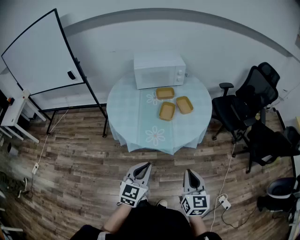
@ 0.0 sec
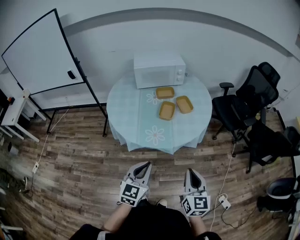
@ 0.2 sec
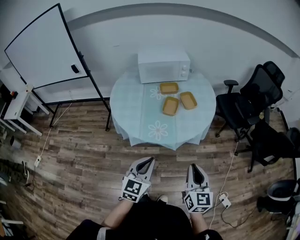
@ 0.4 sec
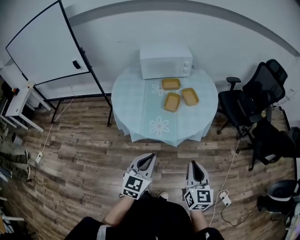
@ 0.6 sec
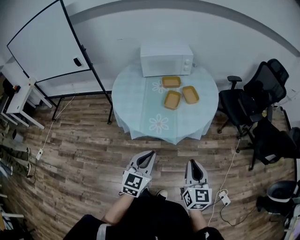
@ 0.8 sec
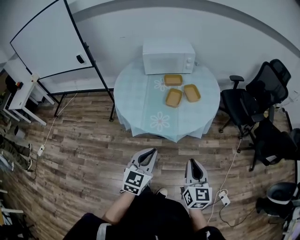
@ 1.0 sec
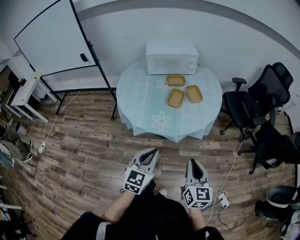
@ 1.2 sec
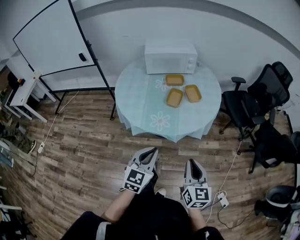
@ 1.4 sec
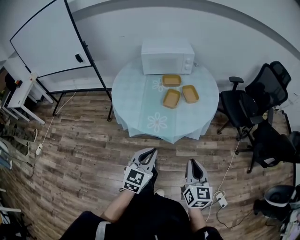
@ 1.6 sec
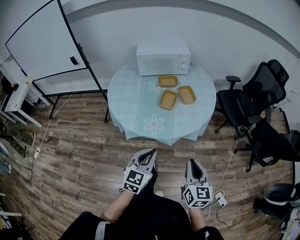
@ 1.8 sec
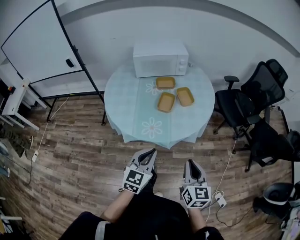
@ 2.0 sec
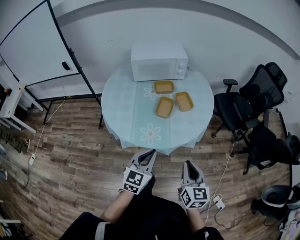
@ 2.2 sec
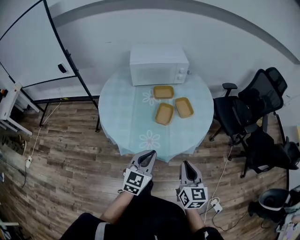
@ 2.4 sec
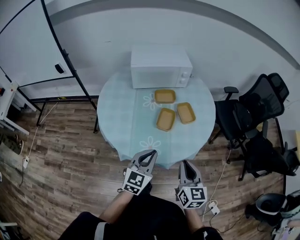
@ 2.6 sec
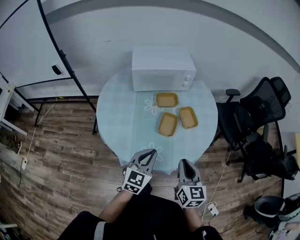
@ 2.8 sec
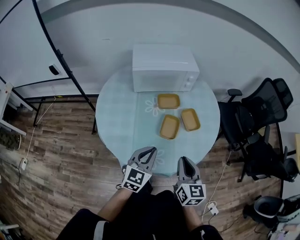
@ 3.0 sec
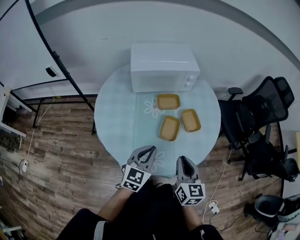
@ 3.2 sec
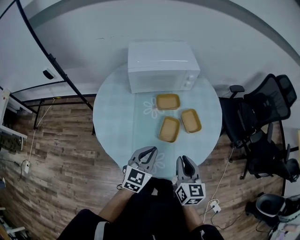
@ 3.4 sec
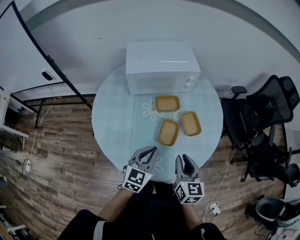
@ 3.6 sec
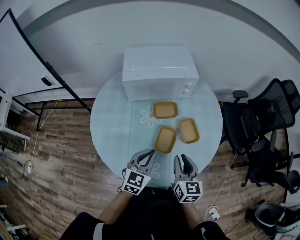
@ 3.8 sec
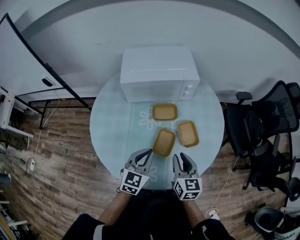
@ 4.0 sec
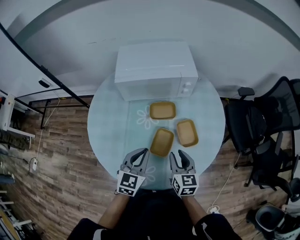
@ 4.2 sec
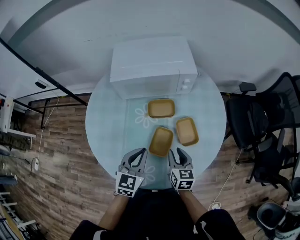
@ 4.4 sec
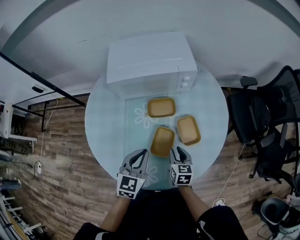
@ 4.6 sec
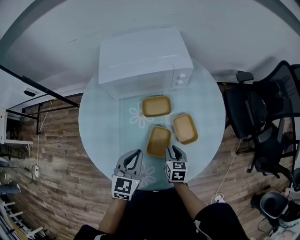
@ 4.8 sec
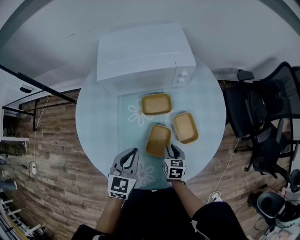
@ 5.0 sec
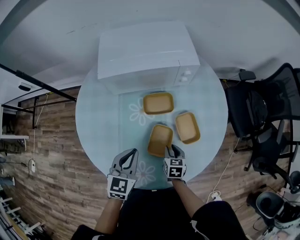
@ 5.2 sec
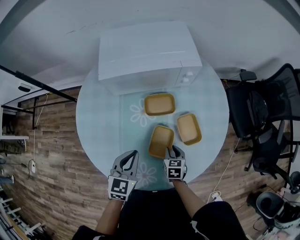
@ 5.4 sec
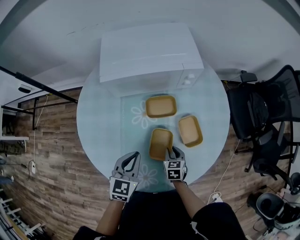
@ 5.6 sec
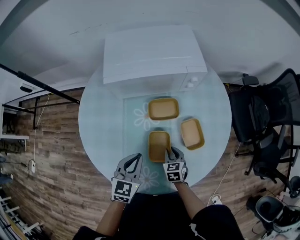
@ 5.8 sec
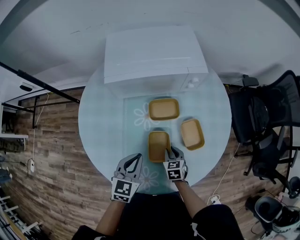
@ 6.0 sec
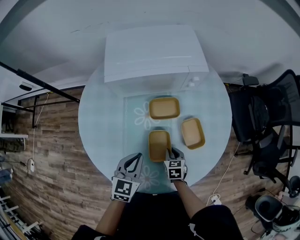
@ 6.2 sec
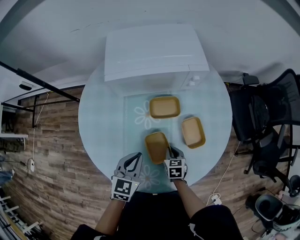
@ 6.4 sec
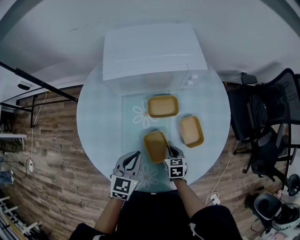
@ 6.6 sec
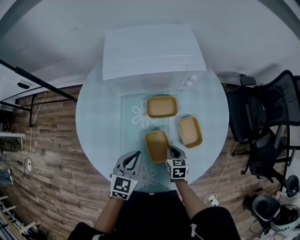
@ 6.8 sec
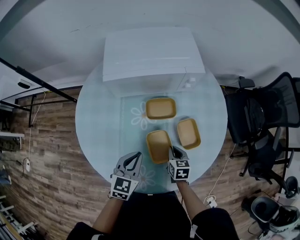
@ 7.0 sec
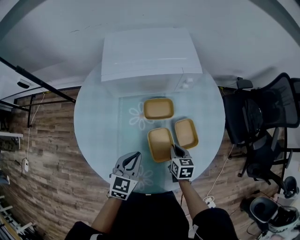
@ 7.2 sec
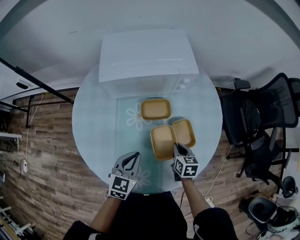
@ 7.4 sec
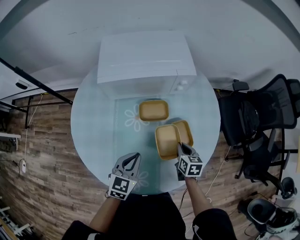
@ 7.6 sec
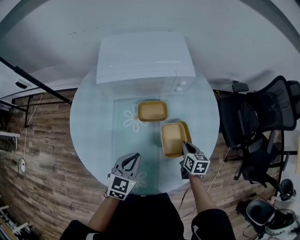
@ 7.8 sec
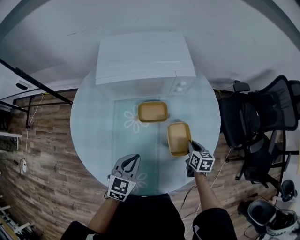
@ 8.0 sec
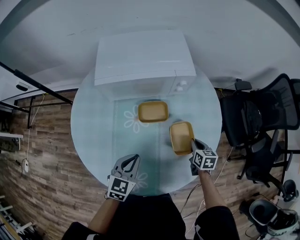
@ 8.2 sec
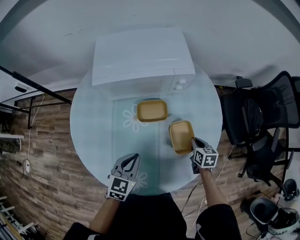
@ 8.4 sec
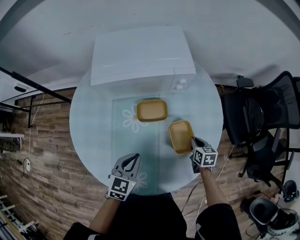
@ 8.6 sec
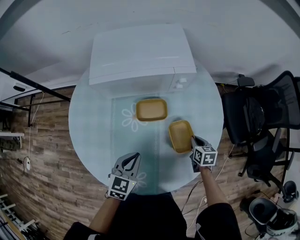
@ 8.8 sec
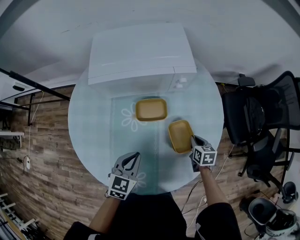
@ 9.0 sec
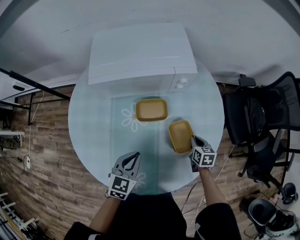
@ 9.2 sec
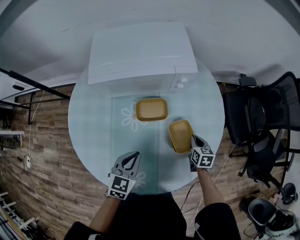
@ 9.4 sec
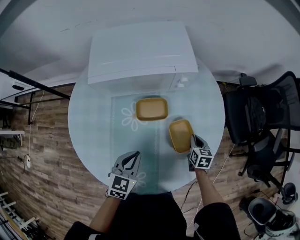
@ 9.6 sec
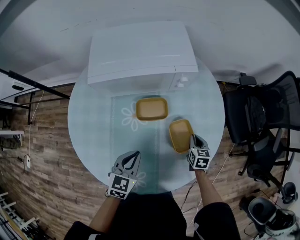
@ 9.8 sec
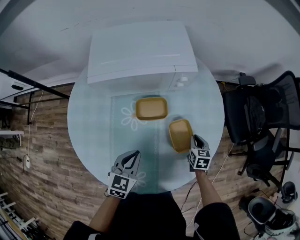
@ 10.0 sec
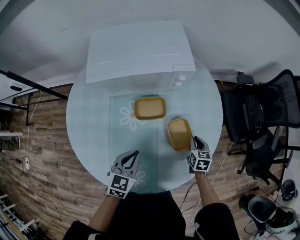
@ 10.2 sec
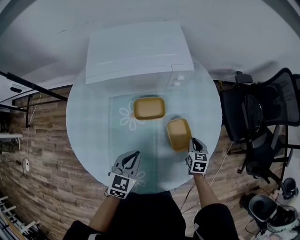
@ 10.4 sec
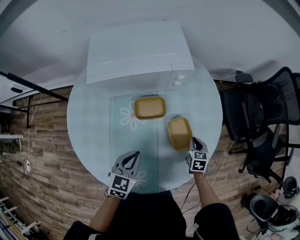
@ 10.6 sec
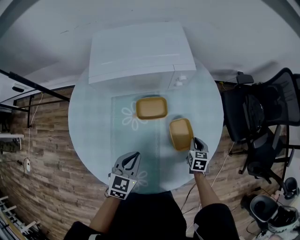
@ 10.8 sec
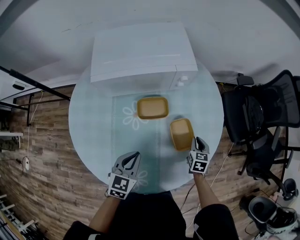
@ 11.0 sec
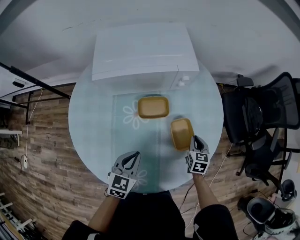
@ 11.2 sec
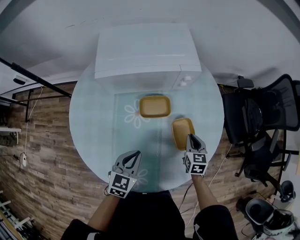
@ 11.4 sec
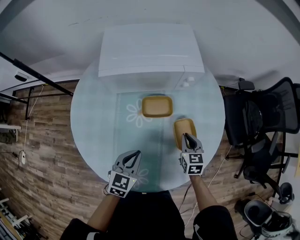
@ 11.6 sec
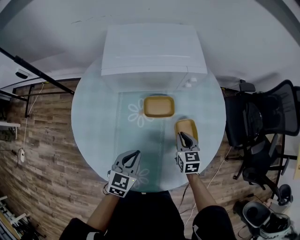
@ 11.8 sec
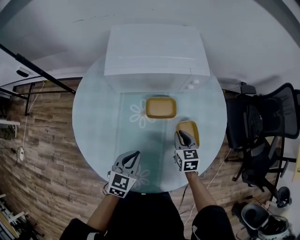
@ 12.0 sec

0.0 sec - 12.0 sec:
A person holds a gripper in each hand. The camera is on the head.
0.0 sec - 1.6 sec: The grippers make only small movements.
1.6 sec - 3.0 sec: The right gripper is displaced forward and to the left by some 30 cm, while the left gripper goes some 30 cm forward.
3.0 sec - 4.4 sec: The right gripper travels forward and downward by some 25 cm, and opens up. Meanwhile the left gripper goes roughly 15 cm forward.
4.4 sec - 6.0 sec: The right gripper shifts about 15 cm downward, and swivels some 30 degrees, while the left gripper shifts approximately 10 cm downward and to the left.
6.0 sec - 7.6 sec: The right gripper heads to the right and upward, covering some 15 cm.
7.6 sec - 9.0 sec: The right gripper travels to the right, downward and forward by about 10 cm.
9.0 sec - 10.4 sec: The grippers stay close to where they were, moving slightly.
10.4 sec - 12.0 sec: The right gripper travels to the left and upward by some 15 cm.

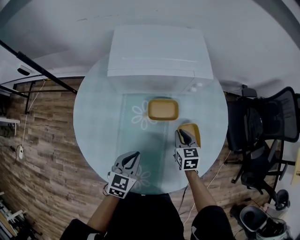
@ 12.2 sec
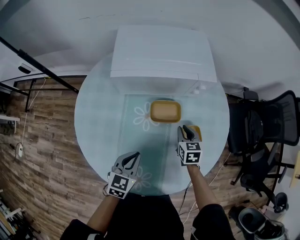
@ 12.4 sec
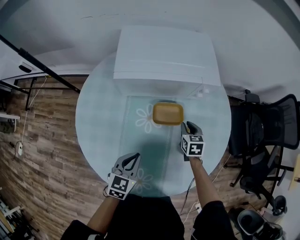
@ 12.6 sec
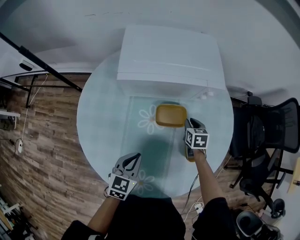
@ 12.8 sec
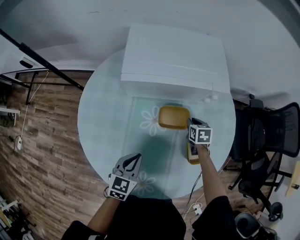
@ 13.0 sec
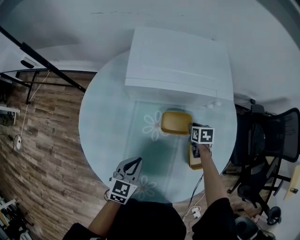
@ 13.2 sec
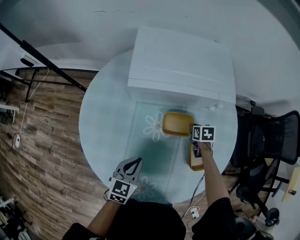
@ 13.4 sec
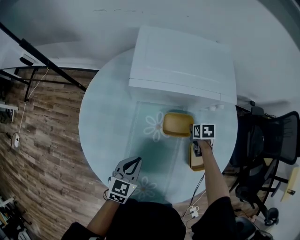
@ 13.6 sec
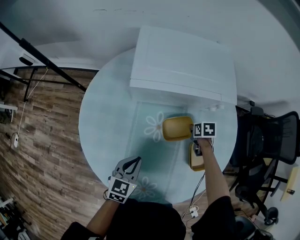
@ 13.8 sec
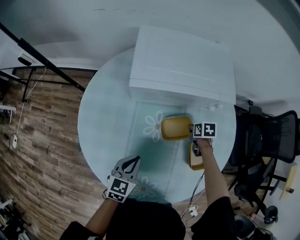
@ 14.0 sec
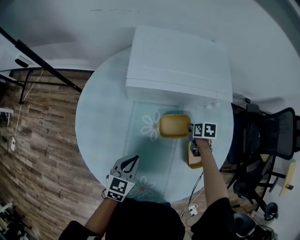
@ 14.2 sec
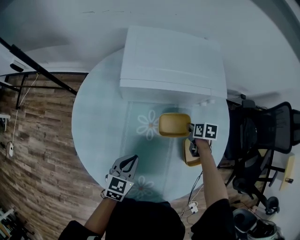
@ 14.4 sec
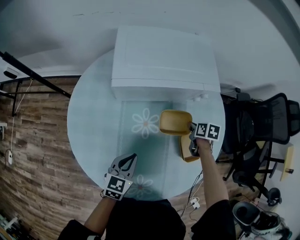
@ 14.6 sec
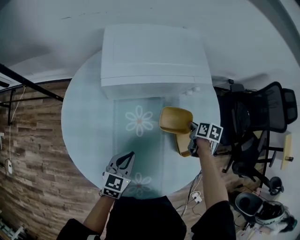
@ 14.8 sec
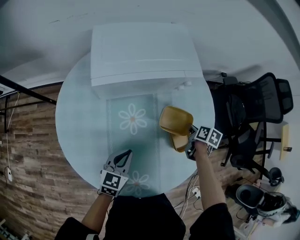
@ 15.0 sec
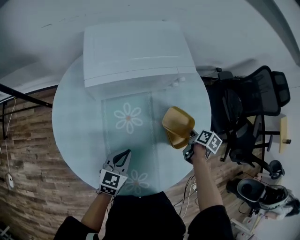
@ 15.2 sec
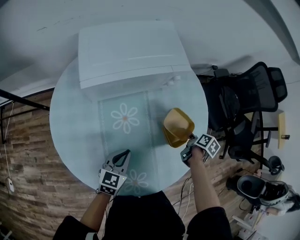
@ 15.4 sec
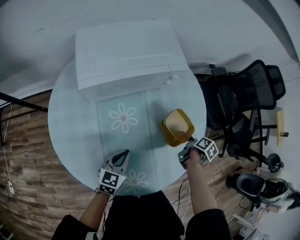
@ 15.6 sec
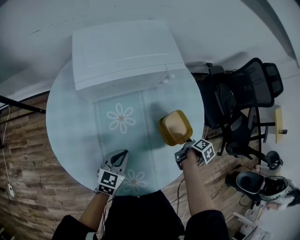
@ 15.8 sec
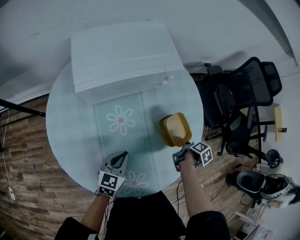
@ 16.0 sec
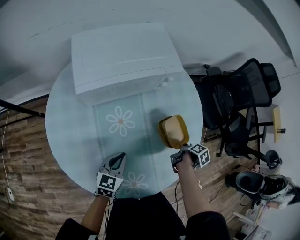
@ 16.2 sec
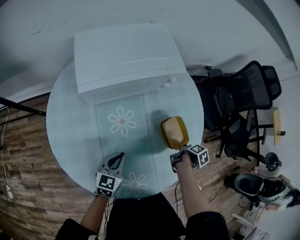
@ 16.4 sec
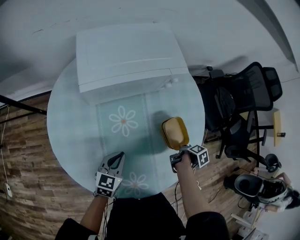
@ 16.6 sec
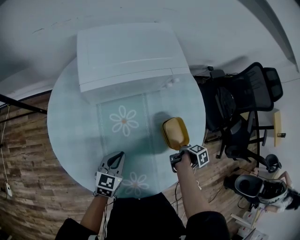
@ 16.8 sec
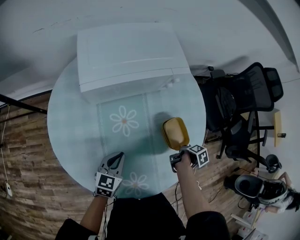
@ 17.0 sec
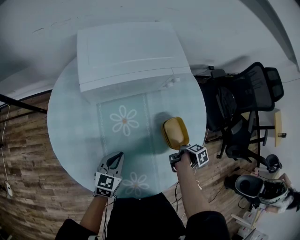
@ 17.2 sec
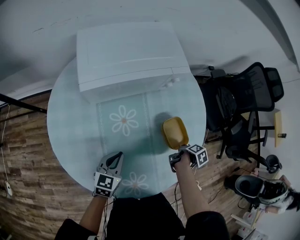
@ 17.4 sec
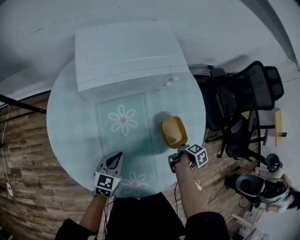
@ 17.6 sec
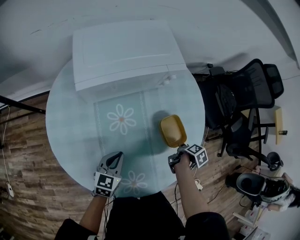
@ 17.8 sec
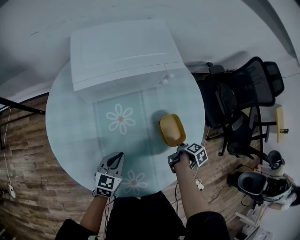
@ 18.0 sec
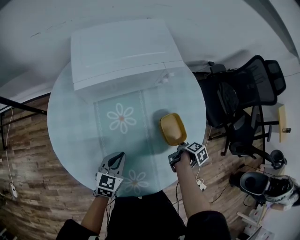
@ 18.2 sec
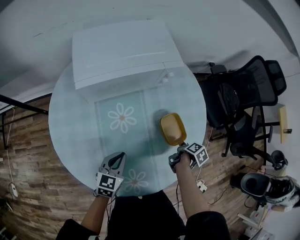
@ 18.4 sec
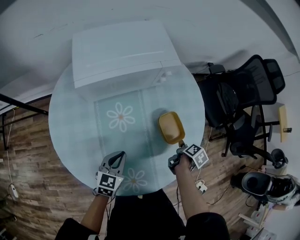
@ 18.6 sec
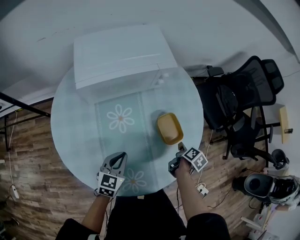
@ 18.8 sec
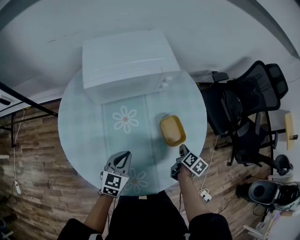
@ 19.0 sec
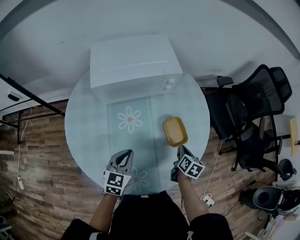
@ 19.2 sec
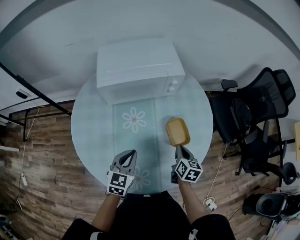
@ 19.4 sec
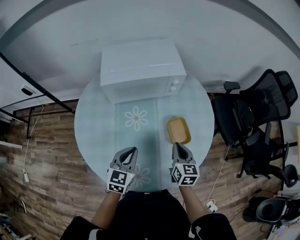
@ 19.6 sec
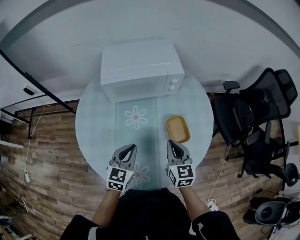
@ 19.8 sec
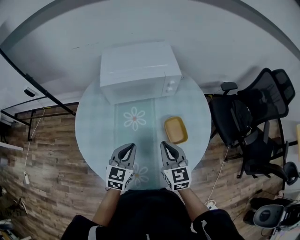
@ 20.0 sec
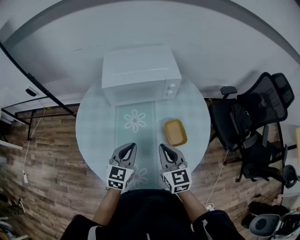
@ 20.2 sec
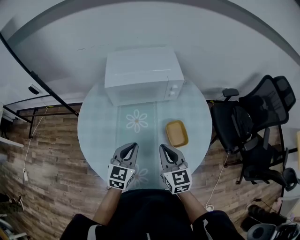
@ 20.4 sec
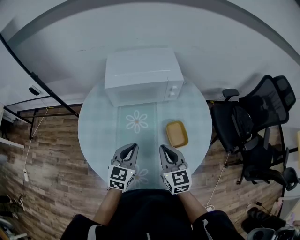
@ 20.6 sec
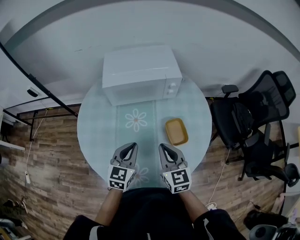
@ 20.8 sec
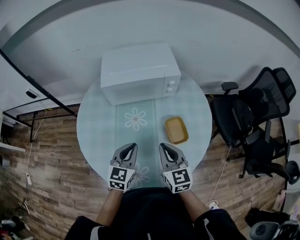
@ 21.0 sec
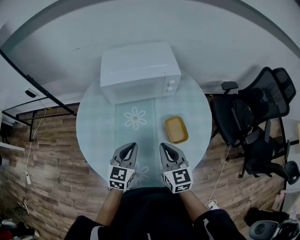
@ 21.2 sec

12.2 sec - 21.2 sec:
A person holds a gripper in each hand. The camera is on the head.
12.2 sec - 13.8 sec: The right gripper is displaced forward and downward by roughly 15 cm, and angles its fingers downward, by roughly 30 degrees. Meanwhile the left gripper heads to the left, covering about 5 cm.
13.8 sec - 15.2 sec: The right gripper ends up roughly 20 cm from where it was, and twists roughly 50 degrees clockwise, seen from behind.
15.2 sec - 16.6 sec: The right gripper moves backward and to the right, roughly 10 cm, and turns by some 40 degrees.
16.6 sec - 18.2 sec: The grippers make only small movements.
18.2 sec - 19.8 sec: The left gripper goes roughly 10 cm upward; the right gripper travels upward by about 20 cm, and rolls counterclockwise, seen from behind, by some 80 degrees.
19.8 sec - 21.2 sec: The right gripper shifts by about 5 cm.

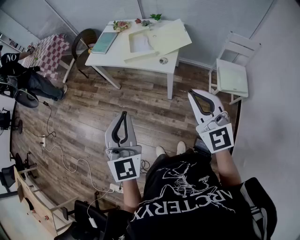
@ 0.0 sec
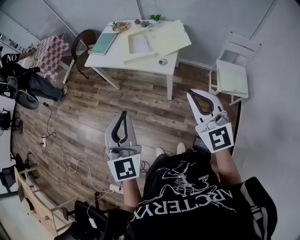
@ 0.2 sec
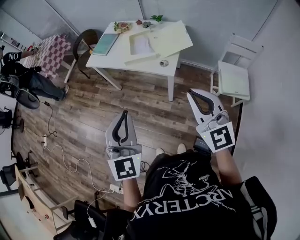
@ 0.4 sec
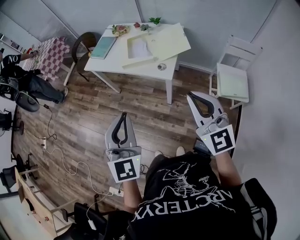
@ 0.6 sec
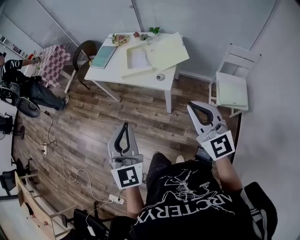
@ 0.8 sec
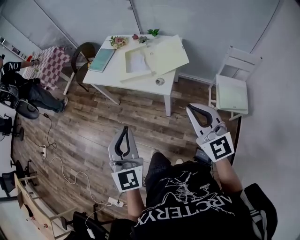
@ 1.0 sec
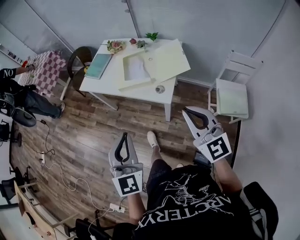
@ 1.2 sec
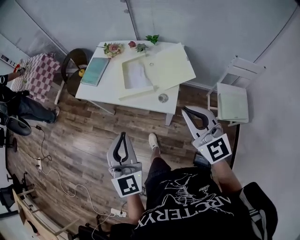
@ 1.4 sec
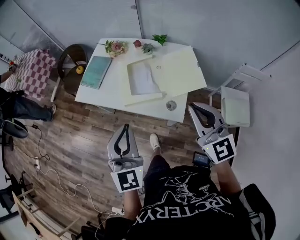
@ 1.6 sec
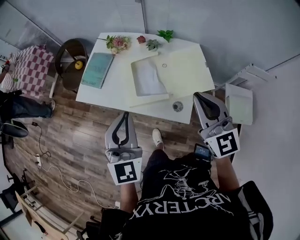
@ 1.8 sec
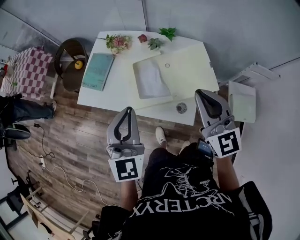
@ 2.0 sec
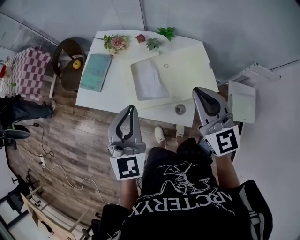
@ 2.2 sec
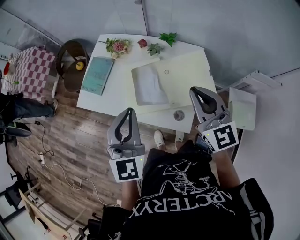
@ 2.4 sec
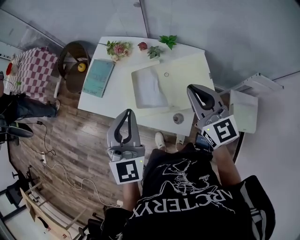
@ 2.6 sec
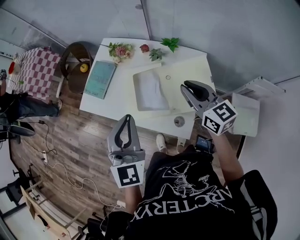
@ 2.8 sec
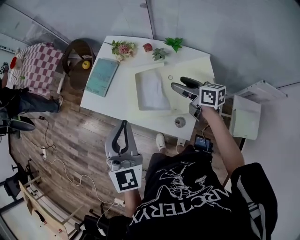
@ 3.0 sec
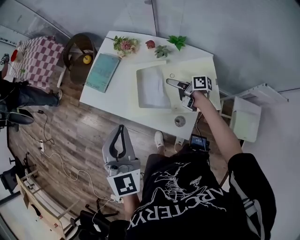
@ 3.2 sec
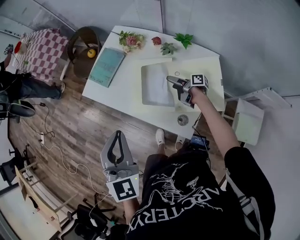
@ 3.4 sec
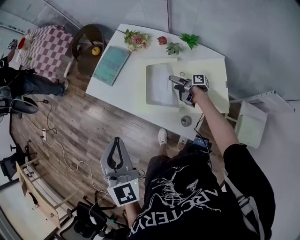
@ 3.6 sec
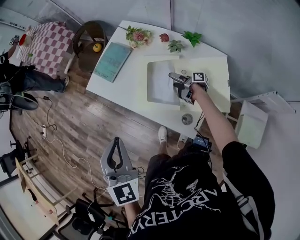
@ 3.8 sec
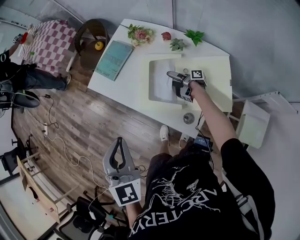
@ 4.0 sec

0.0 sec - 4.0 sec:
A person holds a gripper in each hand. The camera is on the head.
0.0 sec - 1.4 sec: Both grippers travel together forward, about 20 cm.
1.4 sec - 2.6 sec: The two grippers go approximately 30 cm forward.
2.6 sec - 4.0 sec: The left gripper moves approximately 10 cm, and rotates some 20 degrees, while the right gripper shifts some 35 cm downward, rotates around the line of its fingers by some 100 degrees, clockwise from behind, and opens up.
